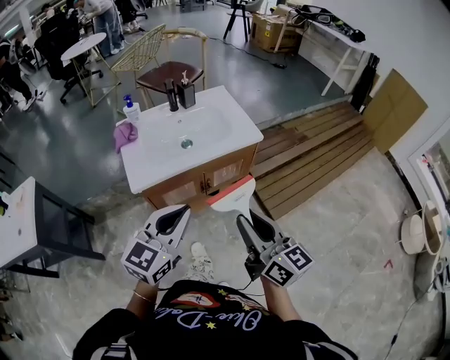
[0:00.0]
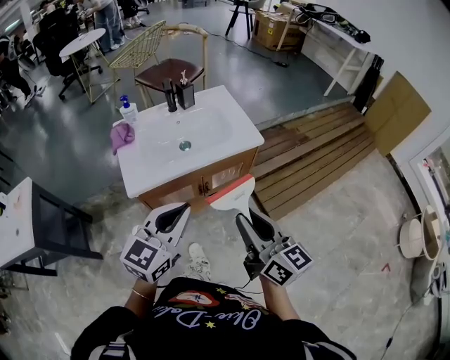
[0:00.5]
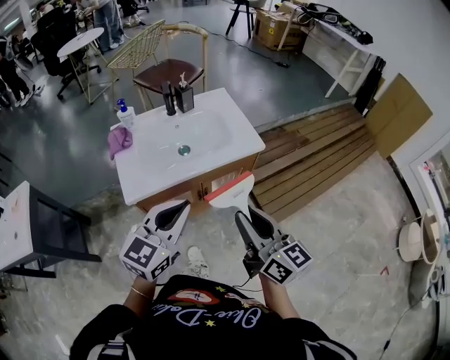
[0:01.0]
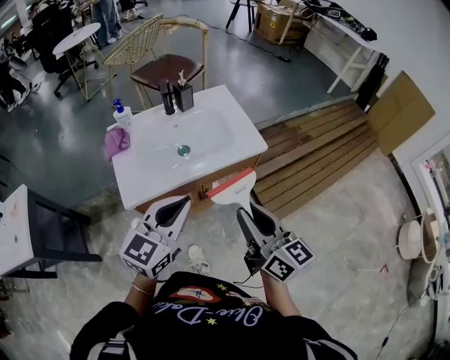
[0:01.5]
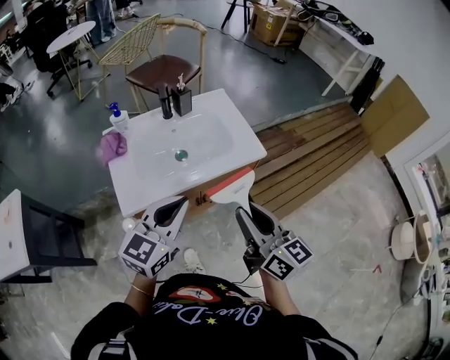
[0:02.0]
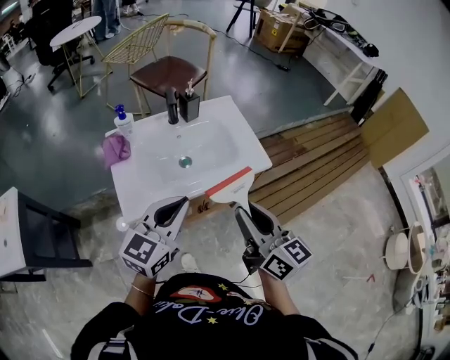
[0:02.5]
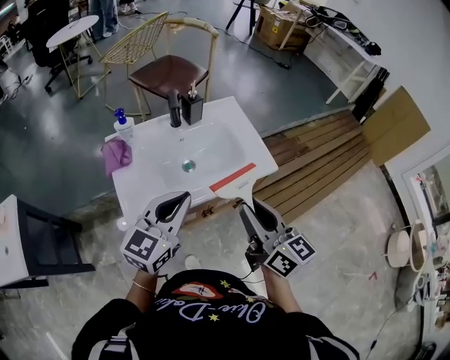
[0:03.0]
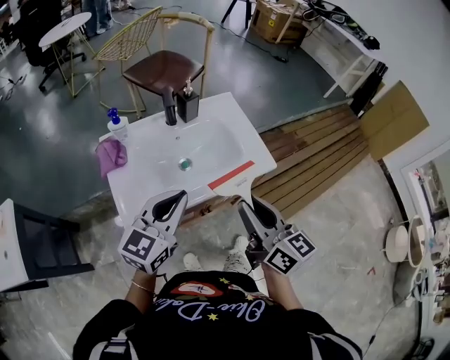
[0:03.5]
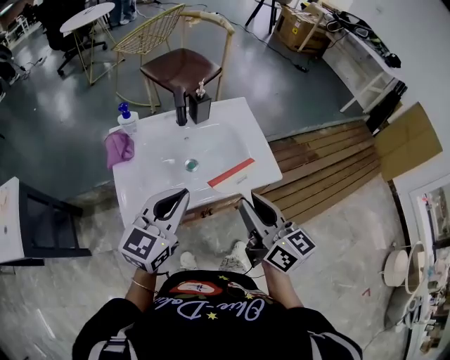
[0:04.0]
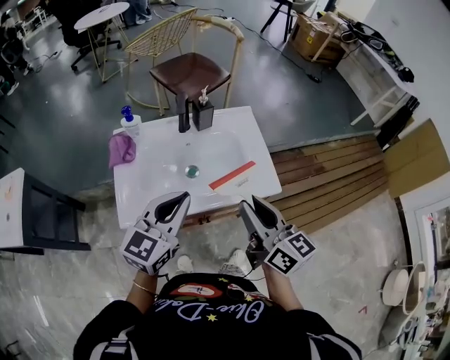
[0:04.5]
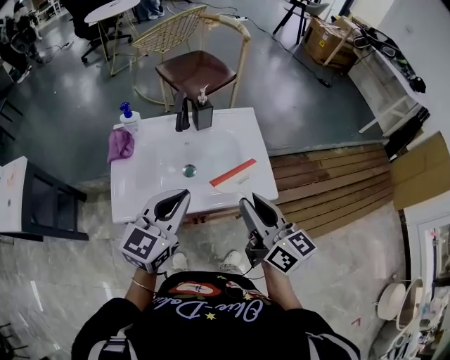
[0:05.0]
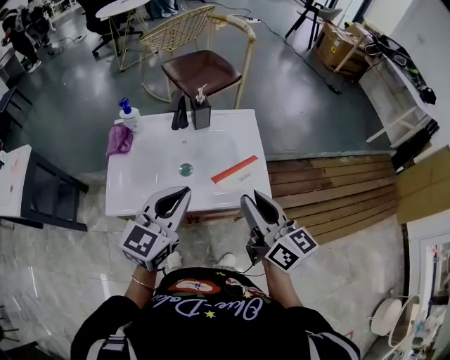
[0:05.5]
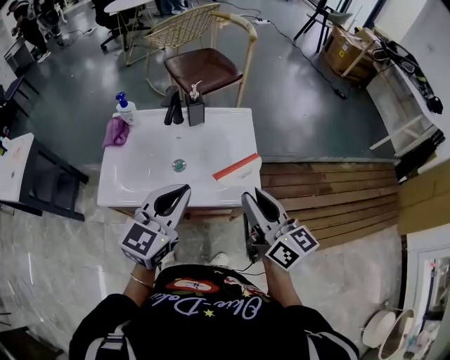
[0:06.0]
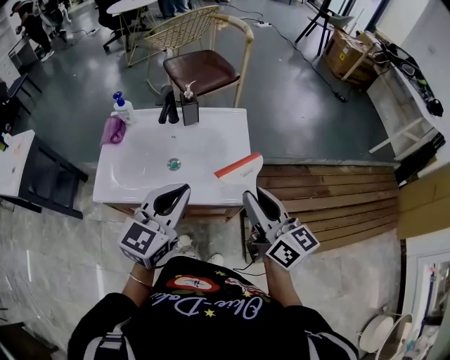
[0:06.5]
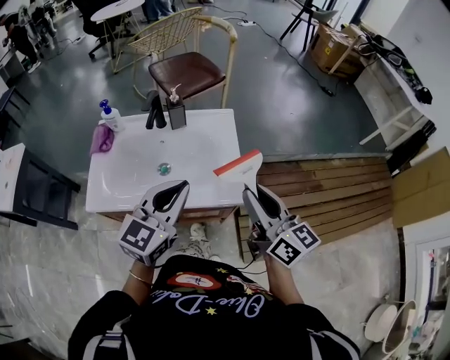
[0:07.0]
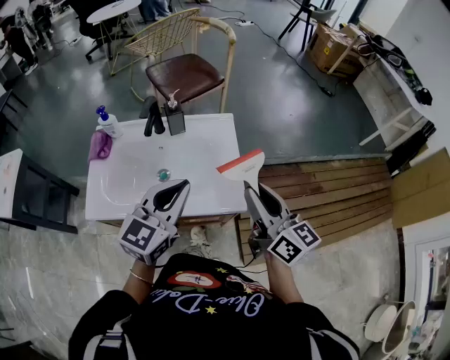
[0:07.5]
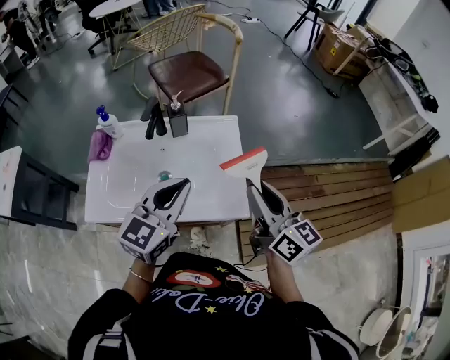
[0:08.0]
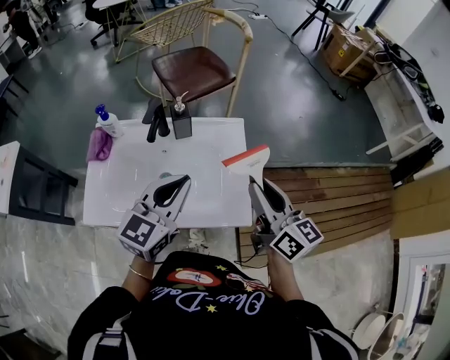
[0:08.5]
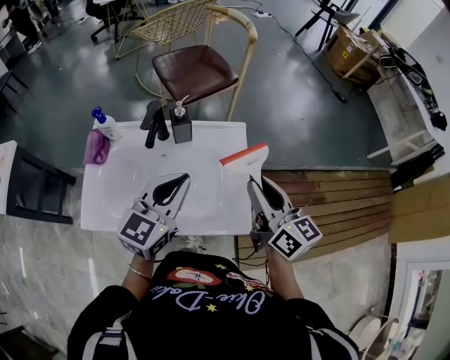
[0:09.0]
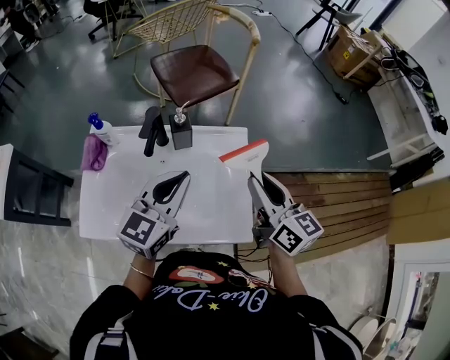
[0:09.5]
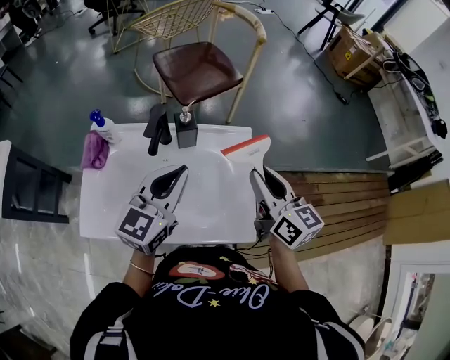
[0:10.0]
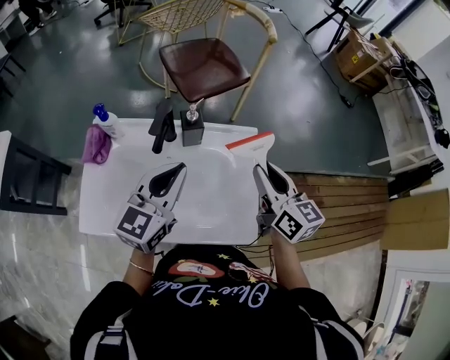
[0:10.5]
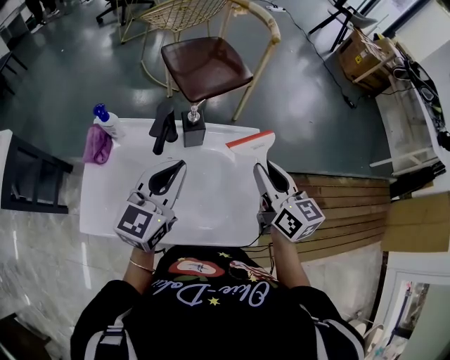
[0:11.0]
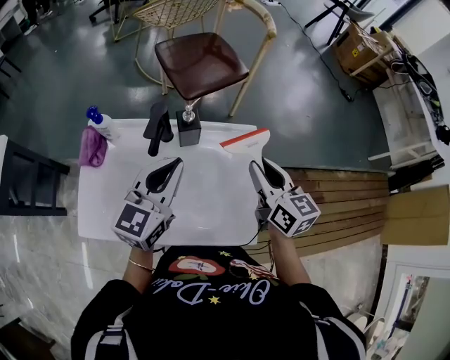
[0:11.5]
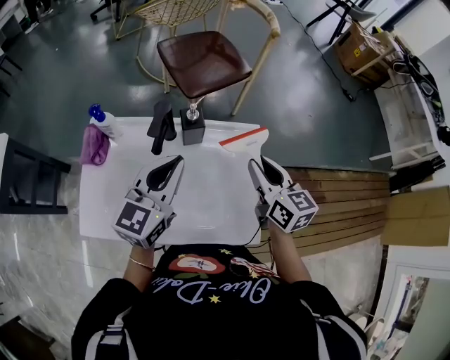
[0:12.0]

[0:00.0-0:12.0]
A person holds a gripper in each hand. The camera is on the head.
0.0 to 2.0 s: Both grippers move forward, some 10 cm.
2.0 to 4.0 s: The two grippers go roughly 10 cm forward.
4.0 to 6.0 s: The right gripper heads to the right and forward, covering about 15 cm. Meanwhile the left gripper goes about 10 cm to the right.
6.0 to 8.0 s: Both grippers move forward, approximately 5 cm.
8.0 to 10.0 s: The grippers both shift forward by about 10 cm.
10.0 to 12.0 s: The right gripper shifts roughly 5 cm downward.

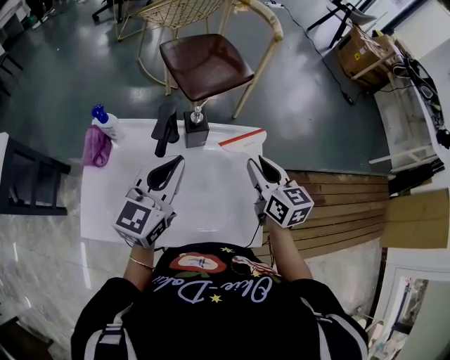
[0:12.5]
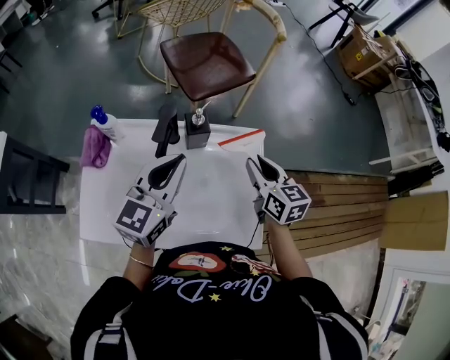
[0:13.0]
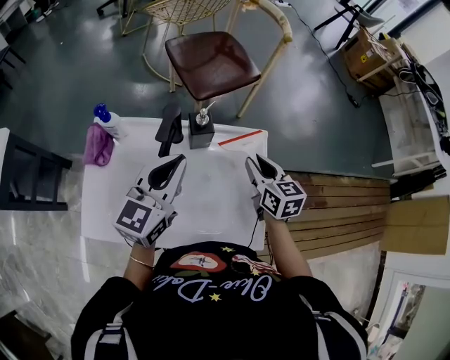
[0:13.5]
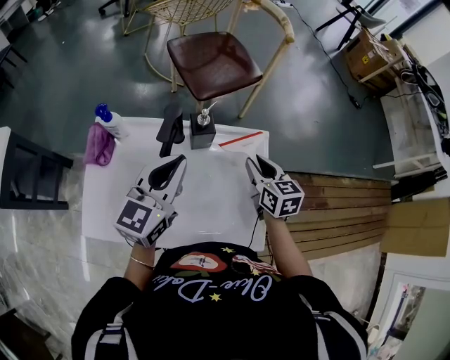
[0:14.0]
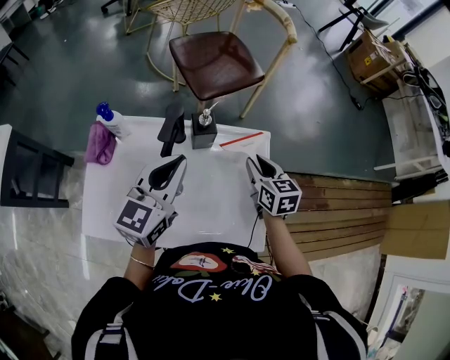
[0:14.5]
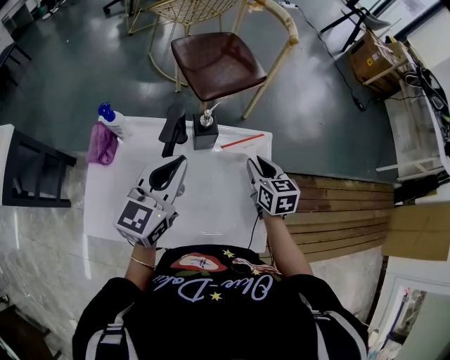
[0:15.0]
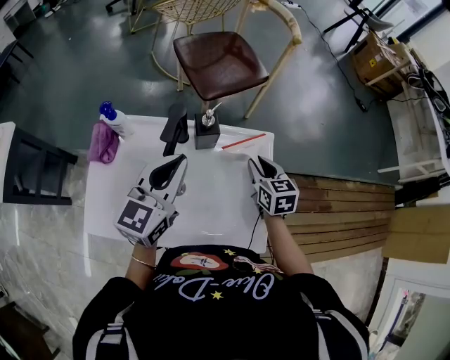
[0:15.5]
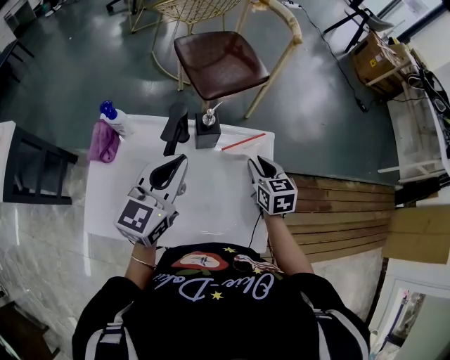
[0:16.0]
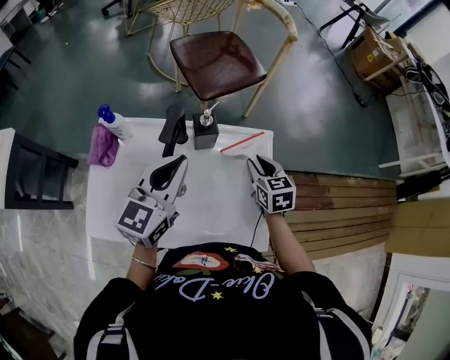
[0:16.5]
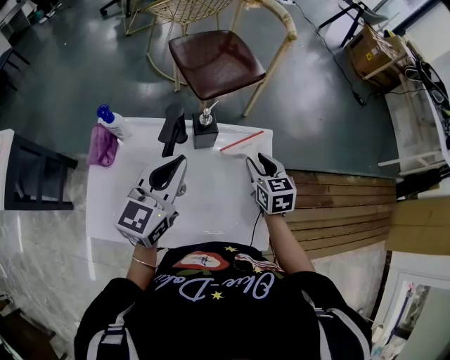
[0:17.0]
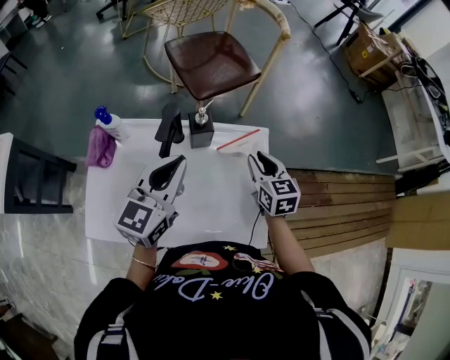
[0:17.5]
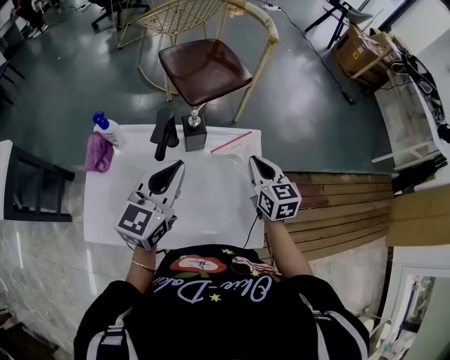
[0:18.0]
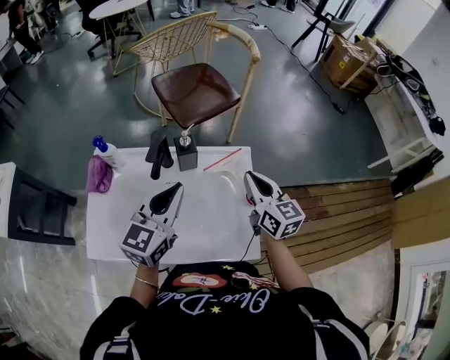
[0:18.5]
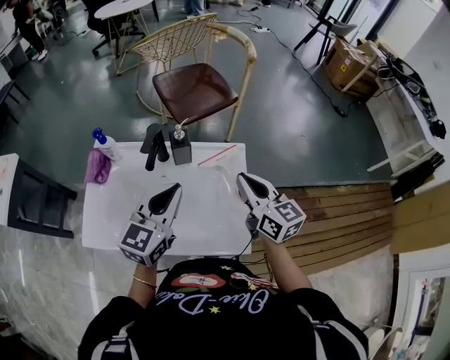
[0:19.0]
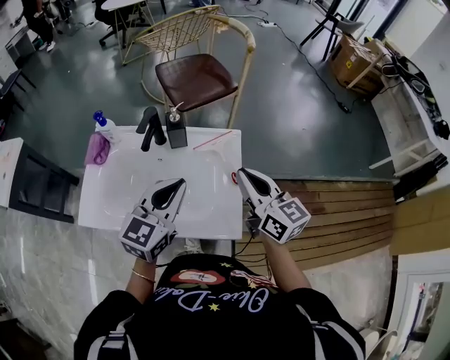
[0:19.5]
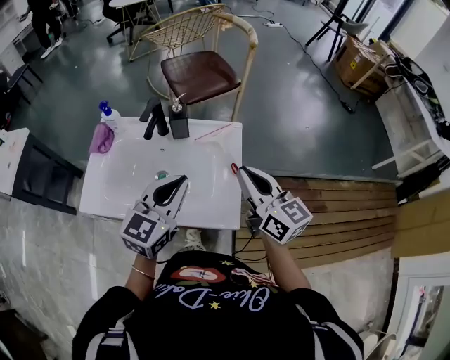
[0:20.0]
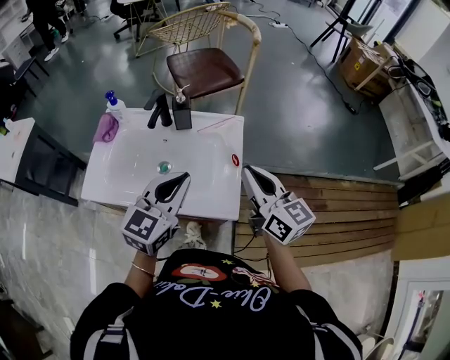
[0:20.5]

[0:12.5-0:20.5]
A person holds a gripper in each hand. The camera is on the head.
12.5 to 14.5 s: The right gripper heads downward, covering approximately 5 cm.
14.5 to 16.5 s: The grippers move only a little.
16.5 to 18.5 s: The right gripper travels upward by approximately 10 cm, swivels roughly 30 degrees, and closes its fingers.
18.5 to 20.5 s: The right gripper shifts about 15 cm backward and upward; the left gripper moves backward and to the right, some 15 cm.

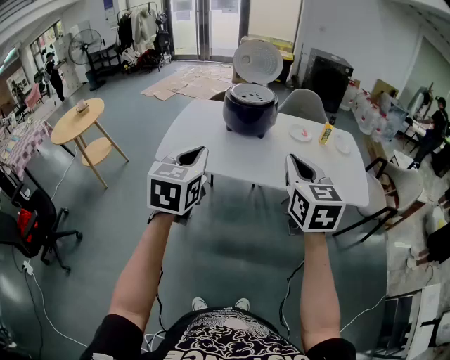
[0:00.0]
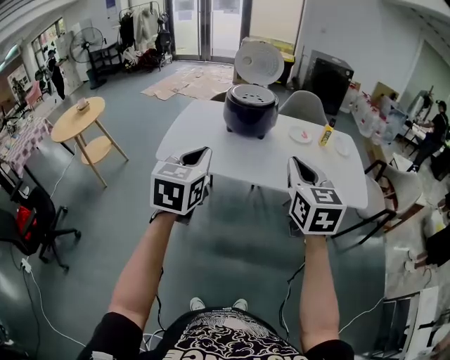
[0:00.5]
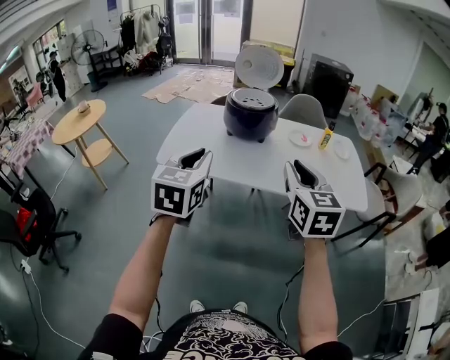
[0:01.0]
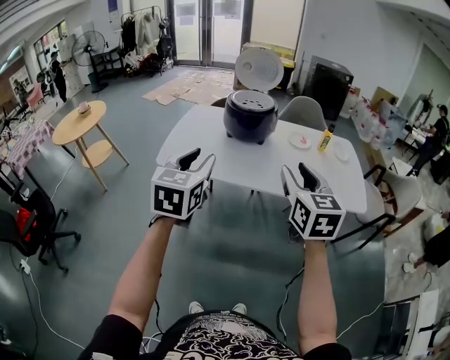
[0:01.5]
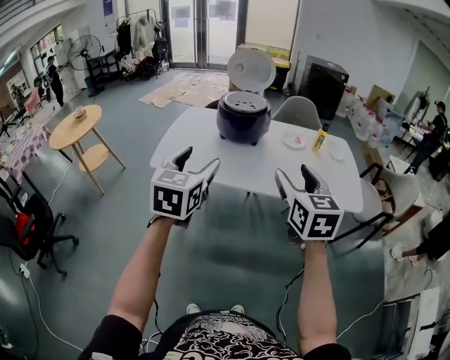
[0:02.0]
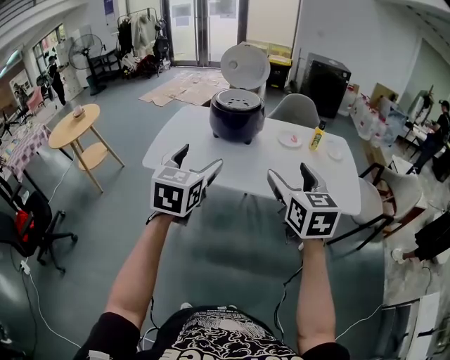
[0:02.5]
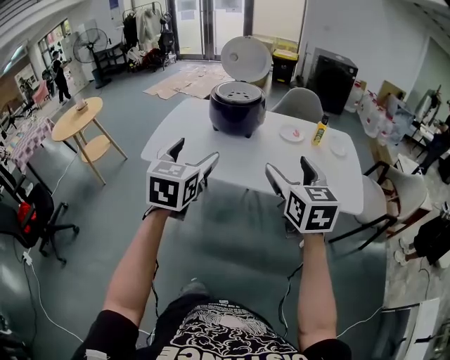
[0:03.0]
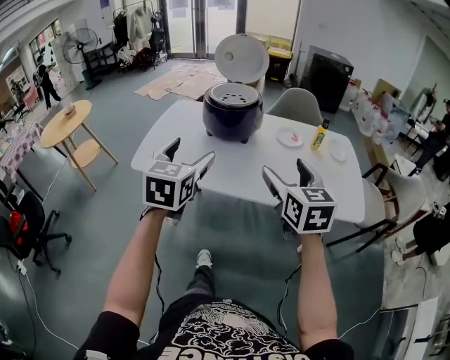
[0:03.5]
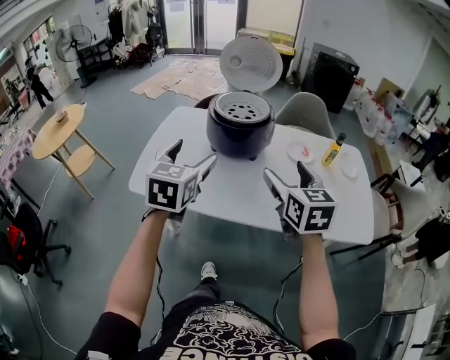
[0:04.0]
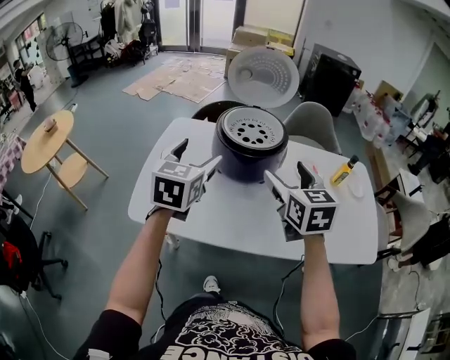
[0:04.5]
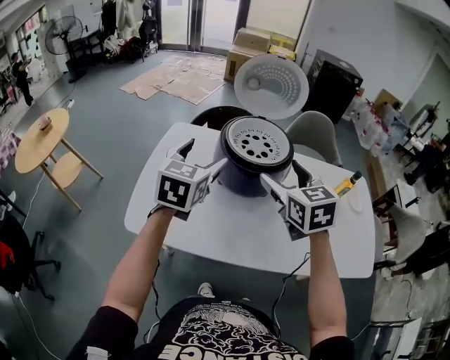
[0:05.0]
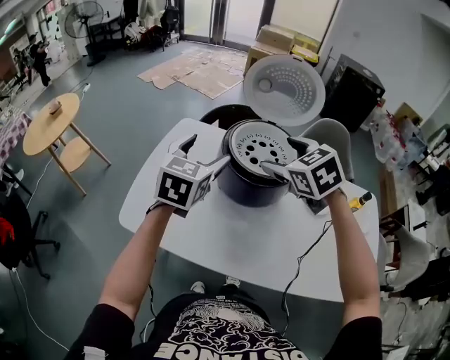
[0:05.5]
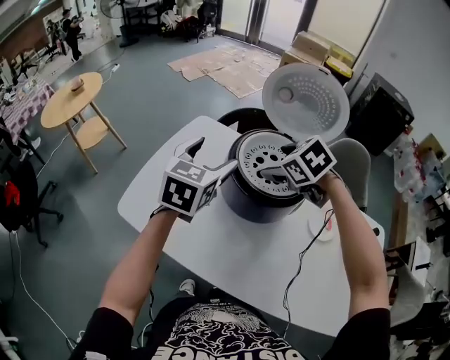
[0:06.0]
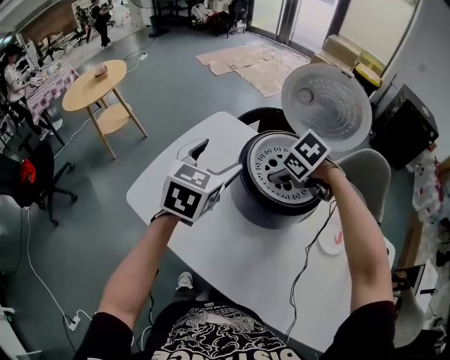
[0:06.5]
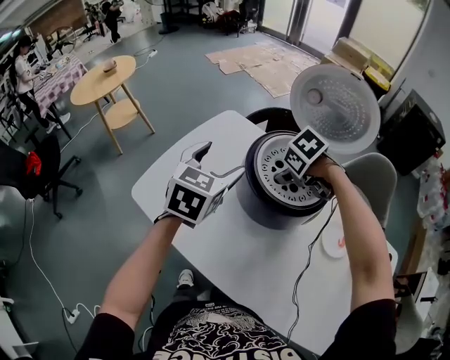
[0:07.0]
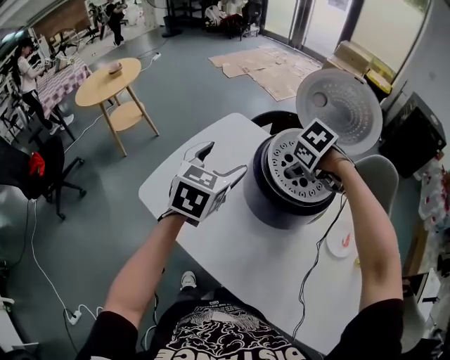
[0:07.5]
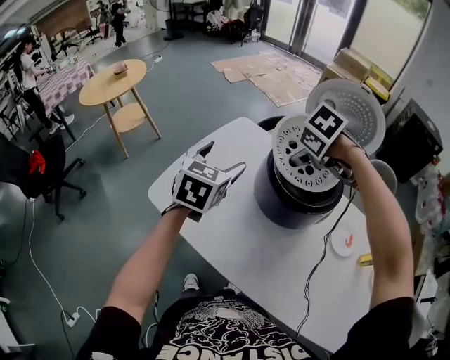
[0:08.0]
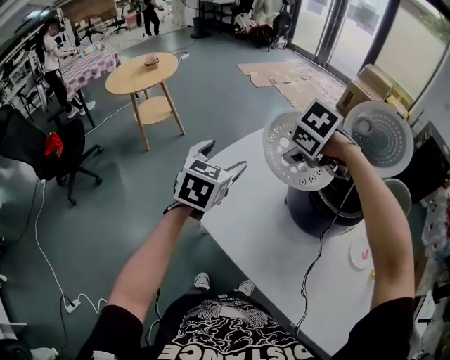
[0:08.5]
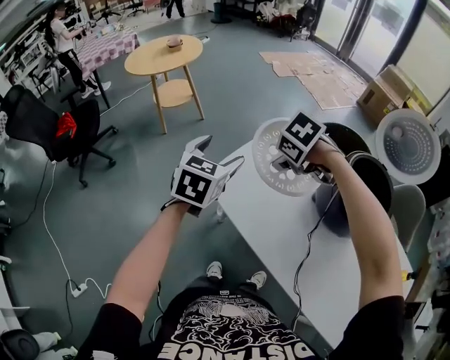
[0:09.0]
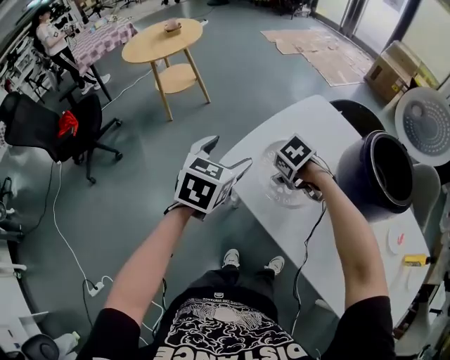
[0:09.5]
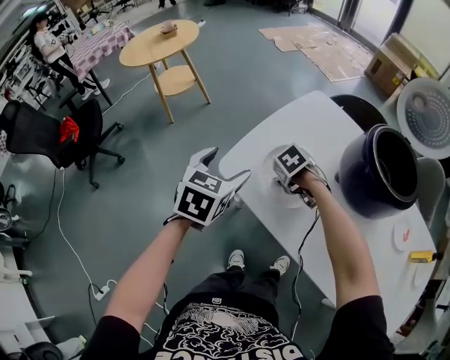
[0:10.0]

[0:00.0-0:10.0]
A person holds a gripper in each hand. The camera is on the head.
0.0 to 2.0 s: The right gripper opens its fingers; the left gripper opens up.
2.0 to 4.0 s: The two grippers go some 30 cm forward.
4.0 to 6.0 s: The right gripper shifts by some 50 cm, and tips its fingers downward by about 40 degrees; the left gripper changes place by approximately 40 cm.
6.0 to 8.0 s: The left gripper moves approximately 10 cm. Meanwhile the right gripper reaches roughly 10 cm downward, then returns, and rotates roughly 20 degrees.
8.0 to 10.0 s: The left gripper shifts by some 30 cm. The right gripper changes place by some 40 cm.
